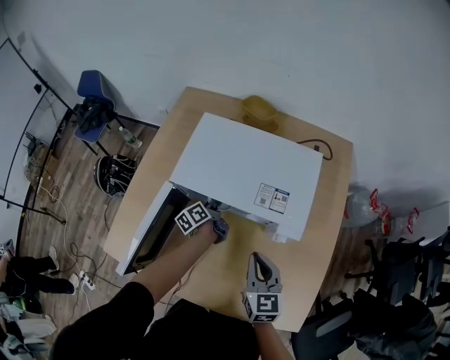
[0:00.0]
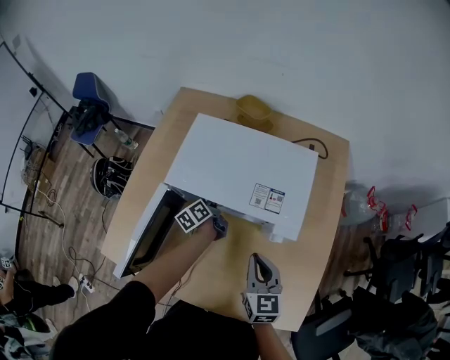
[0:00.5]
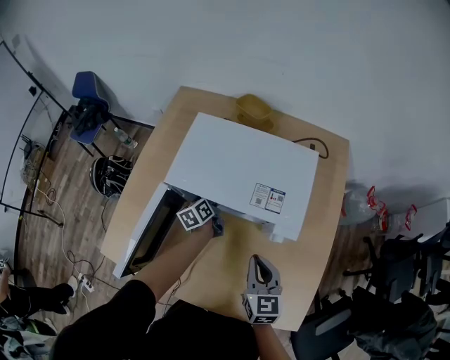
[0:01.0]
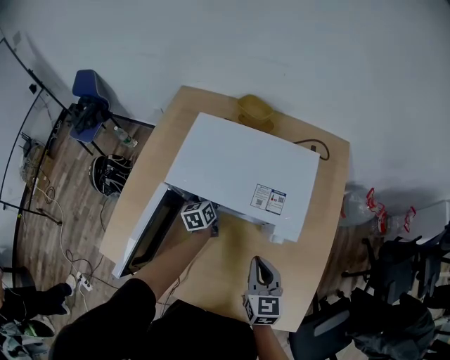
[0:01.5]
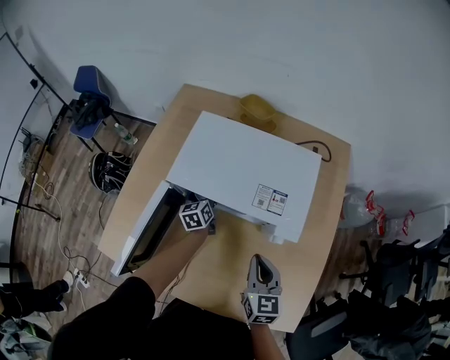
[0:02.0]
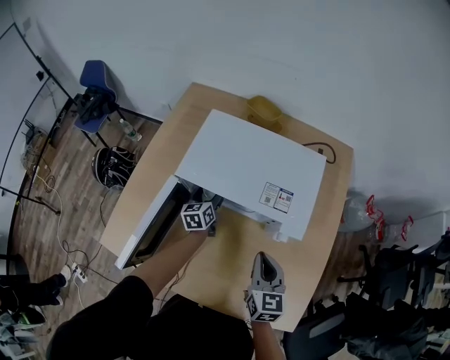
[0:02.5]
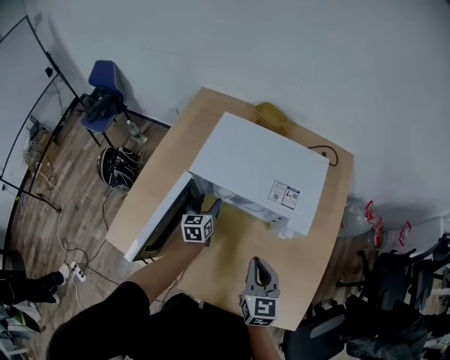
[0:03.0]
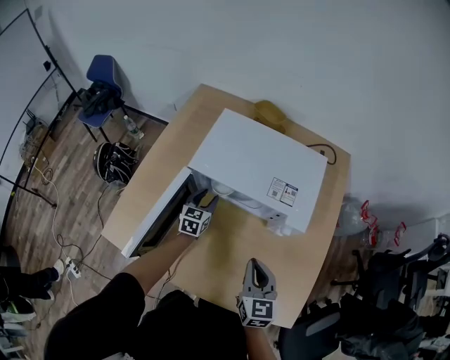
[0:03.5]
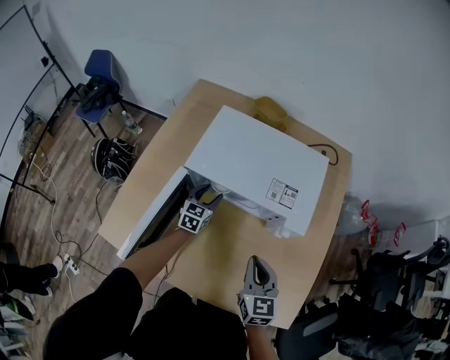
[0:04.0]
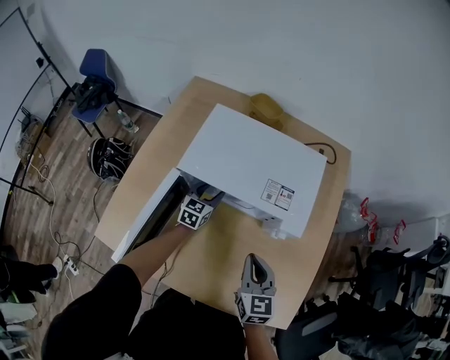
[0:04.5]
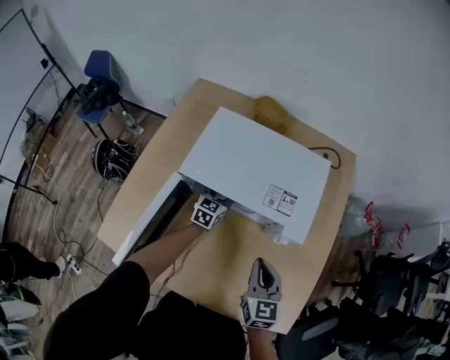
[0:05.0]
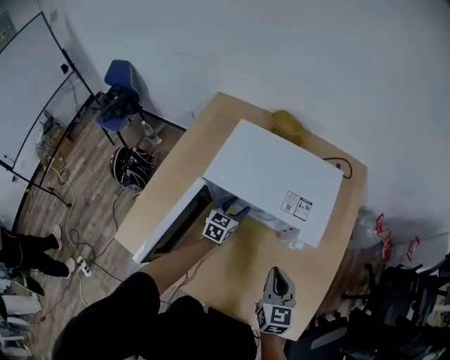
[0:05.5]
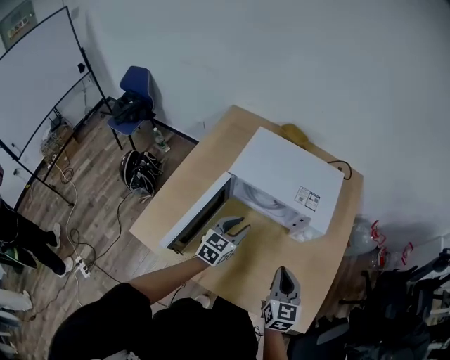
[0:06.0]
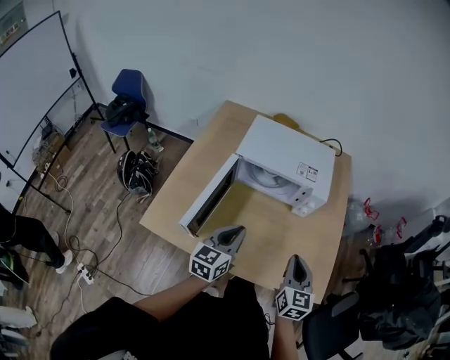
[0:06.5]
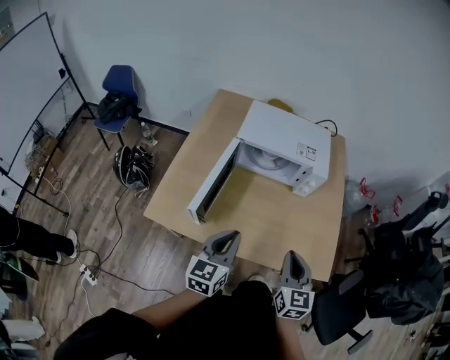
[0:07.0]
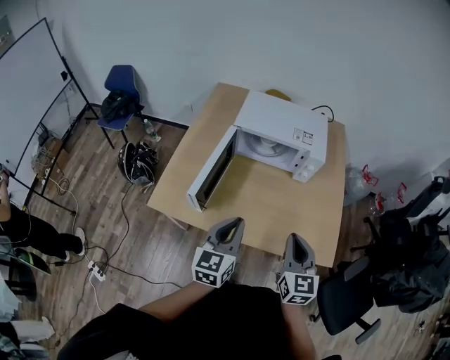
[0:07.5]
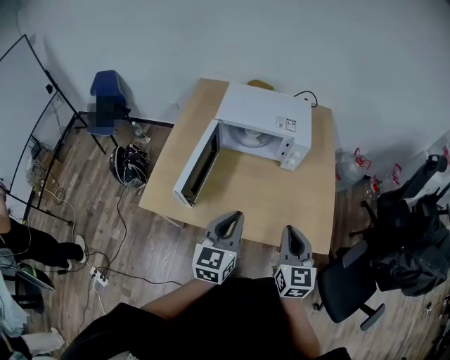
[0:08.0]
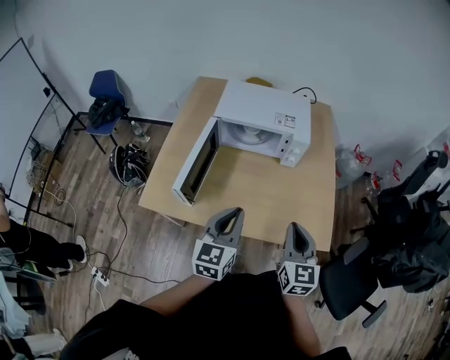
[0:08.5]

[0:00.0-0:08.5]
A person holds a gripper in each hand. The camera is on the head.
0.0 to 2.0 s: The left gripper swivels about 40 degrees.
2.0 to 4.0 s: The right gripper changes place by roughly 5 cm, while the left gripper shifts some 5 cm backward, swivels approximately 30 degrees, and closes.
4.0 to 6.5 s: The right gripper shifts approximately 15 cm backward and upward; the left gripper shifts roughly 35 cm backward and upward, and closes its fingers.
6.5 to 8.5 s: The left gripper heads backward and upward, covering roughly 10 cm, while the right gripper is displaced backward by roughly 10 cm.

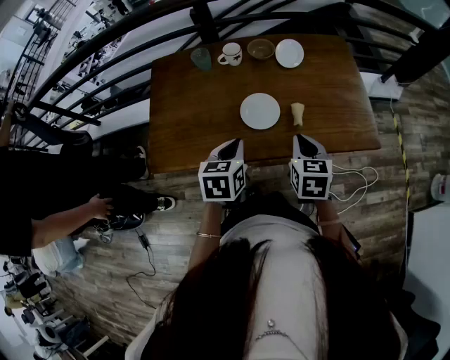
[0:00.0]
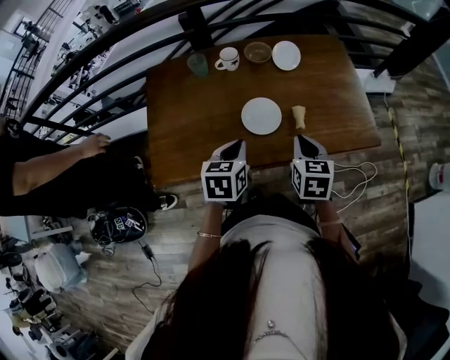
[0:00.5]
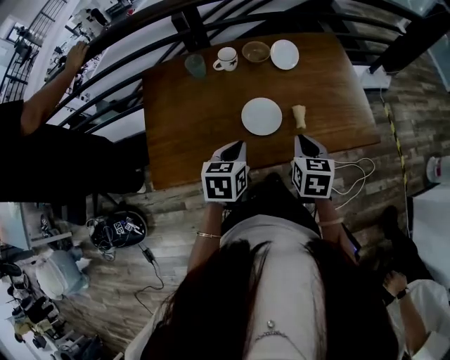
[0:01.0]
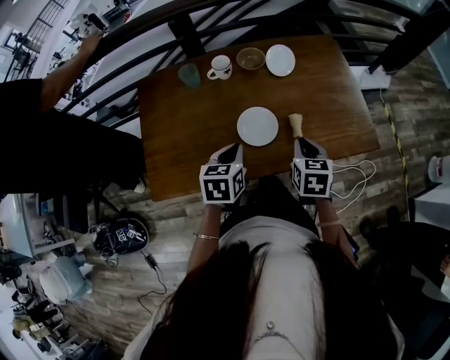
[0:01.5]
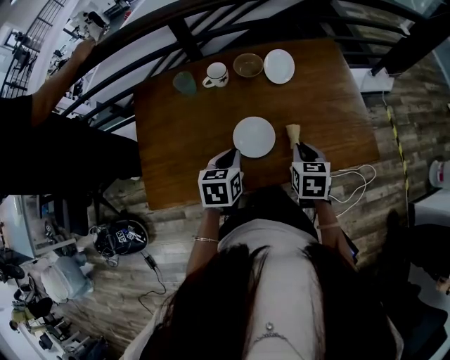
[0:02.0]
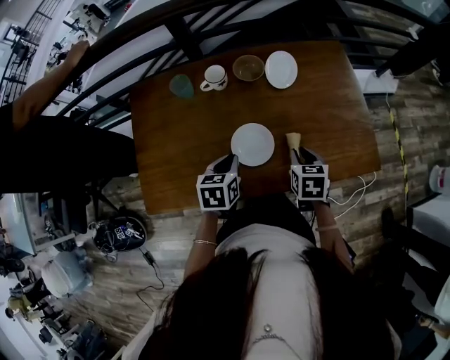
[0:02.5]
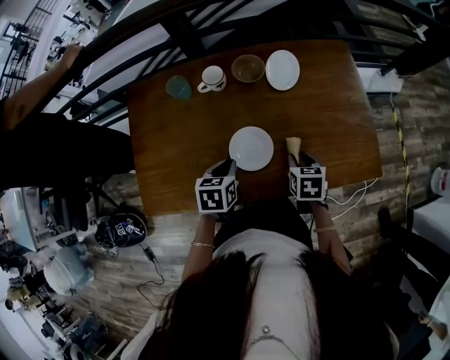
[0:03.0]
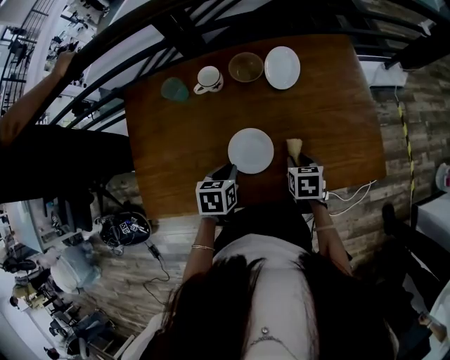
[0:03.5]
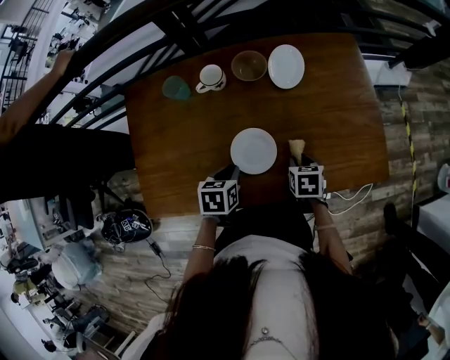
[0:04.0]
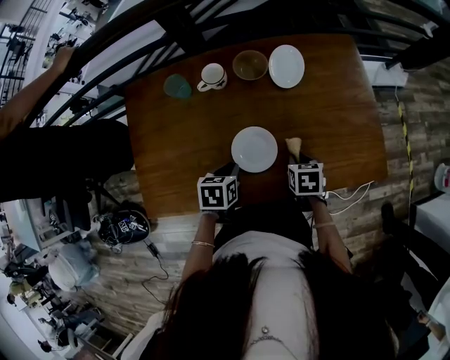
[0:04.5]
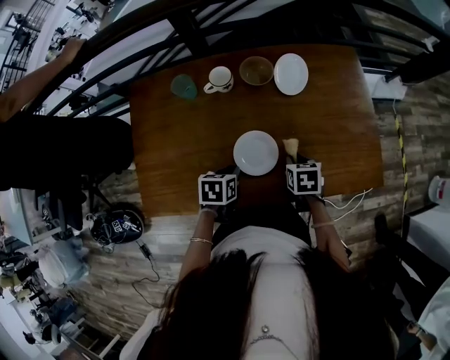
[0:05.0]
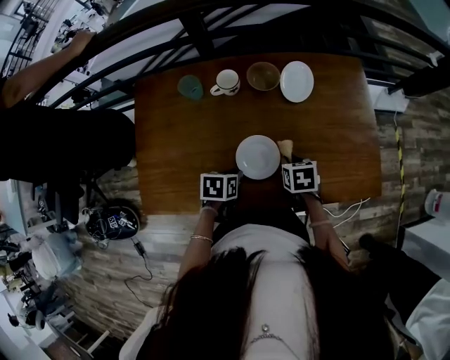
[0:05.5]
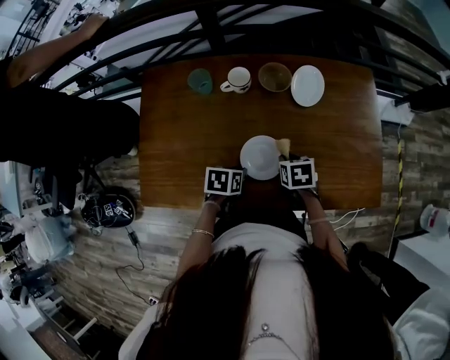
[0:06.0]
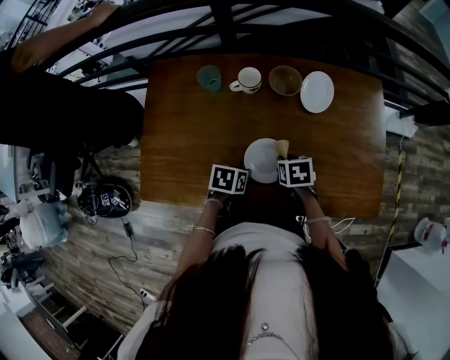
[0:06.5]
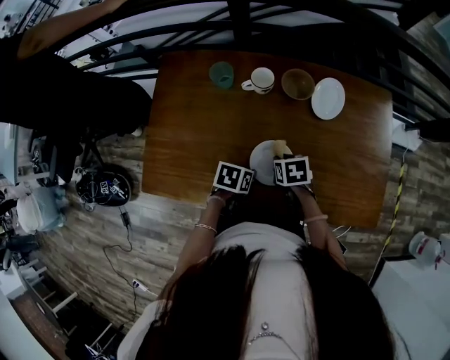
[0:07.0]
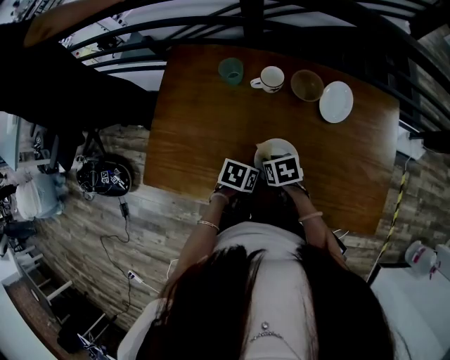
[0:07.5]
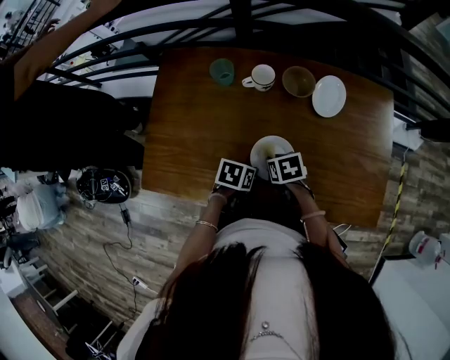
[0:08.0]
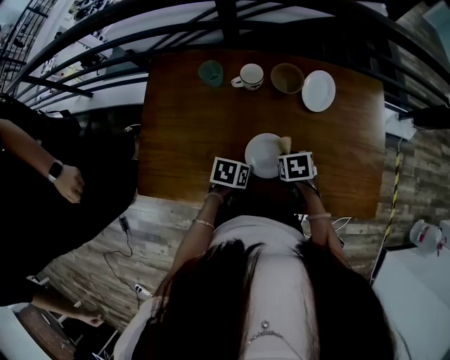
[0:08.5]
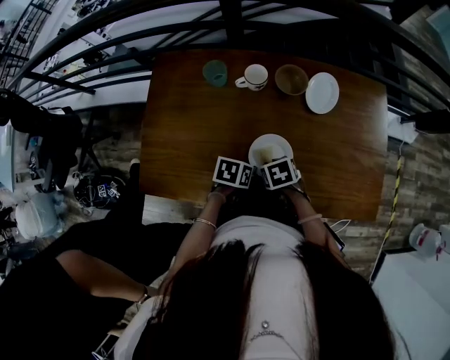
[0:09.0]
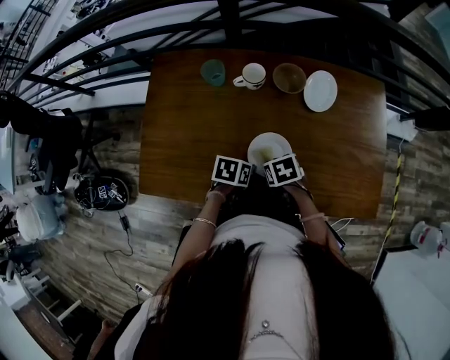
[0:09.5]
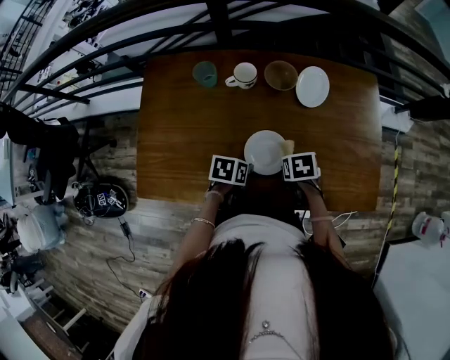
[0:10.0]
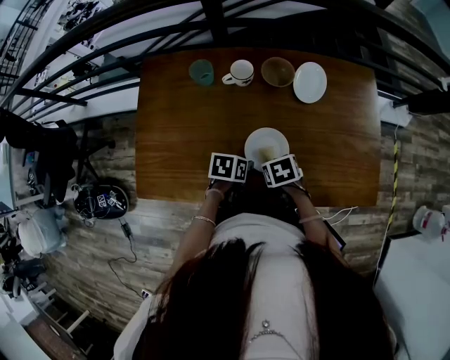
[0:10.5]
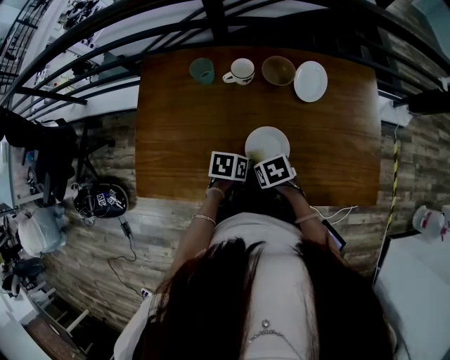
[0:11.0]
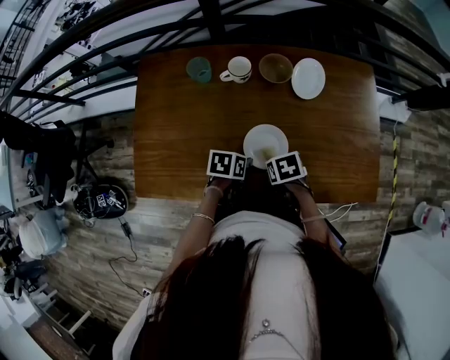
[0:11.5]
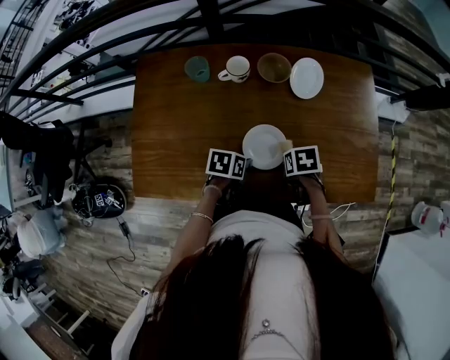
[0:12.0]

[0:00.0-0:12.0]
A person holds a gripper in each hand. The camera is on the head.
0.0 to 2.0 s: The two grippers go about 10 cm forward.
2.0 to 4.0 s: The right gripper is displaced downward and forward by approximately 15 cm, and opens its fingers; the left gripper is displaced downward by some 10 cm.
4.0 to 6.0 s: The right gripper travels to the left by roughly 10 cm.
6.0 to 8.0 s: The right gripper moves roughly 10 cm.
8.0 to 10.0 s: The right gripper changes place by about 10 cm.

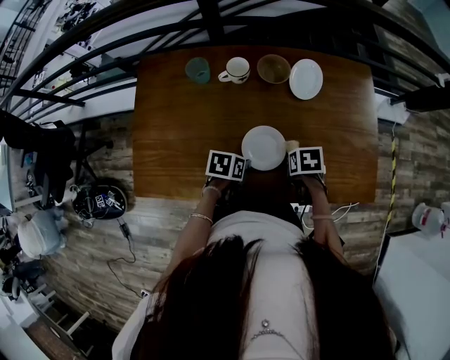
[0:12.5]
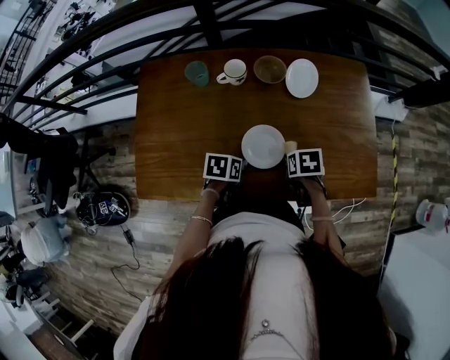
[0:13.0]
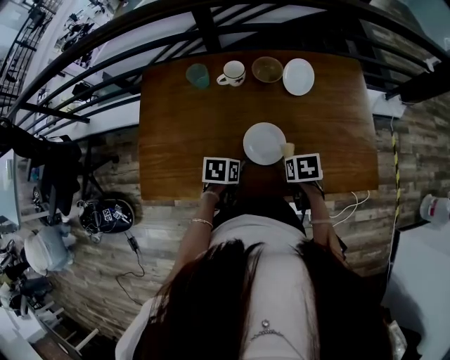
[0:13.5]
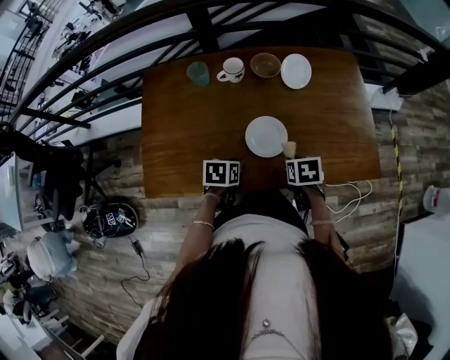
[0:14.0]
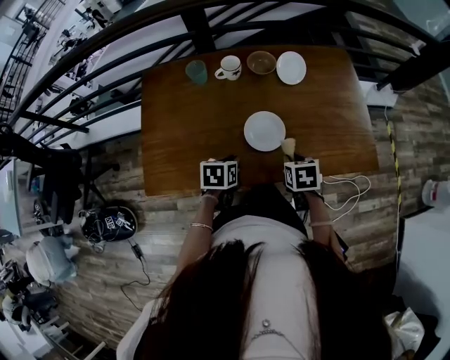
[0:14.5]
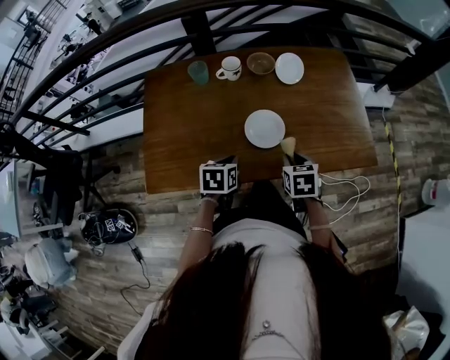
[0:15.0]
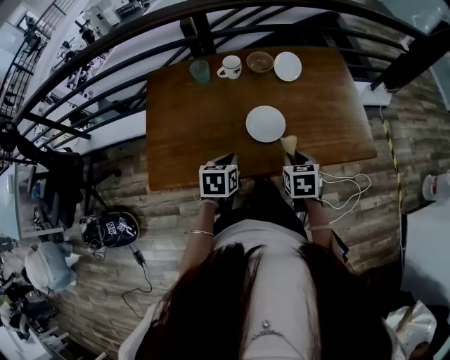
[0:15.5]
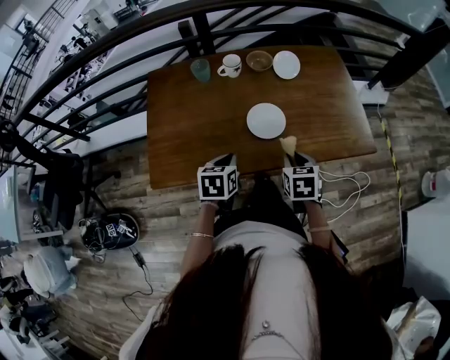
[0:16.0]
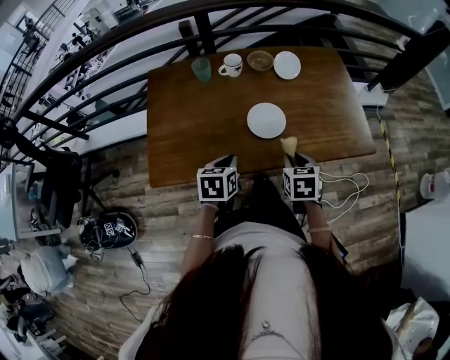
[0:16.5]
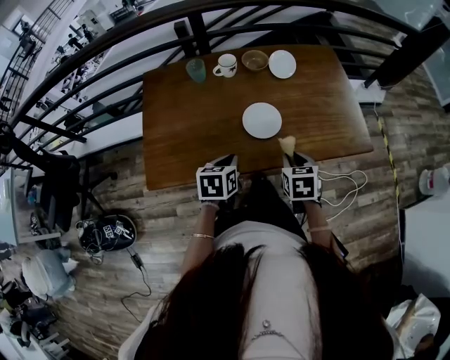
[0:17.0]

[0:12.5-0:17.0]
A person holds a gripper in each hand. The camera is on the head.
12.5 to 14.5 s: The right gripper ends up about 10 cm from where it was, and turns by roughly 20 degrees. Meanwhile the left gripper shifts by roughly 10 cm.
14.5 to 17.0 s: The right gripper travels backward by roughly 5 cm. The left gripper is displaced backward and upward by some 10 cm.

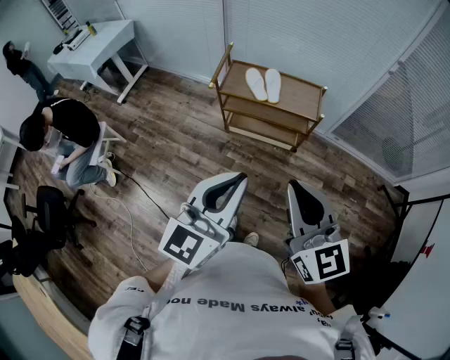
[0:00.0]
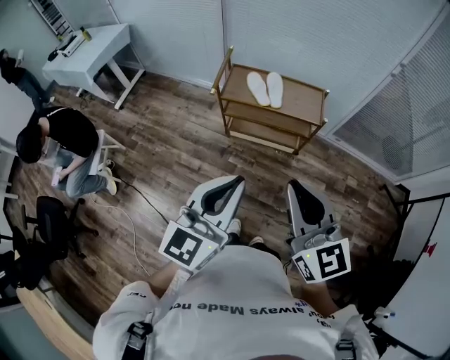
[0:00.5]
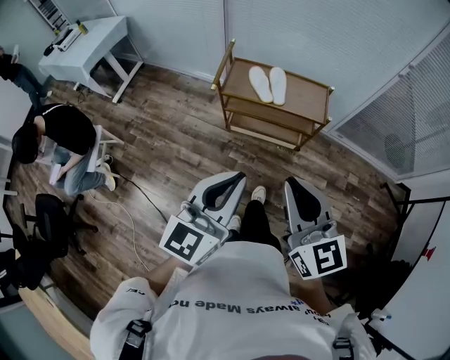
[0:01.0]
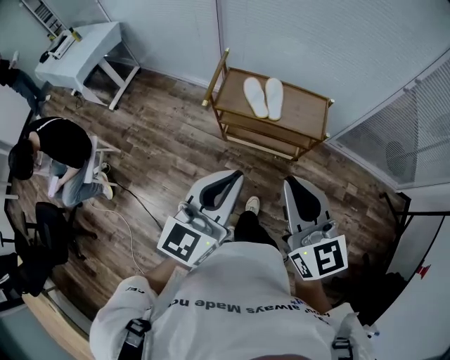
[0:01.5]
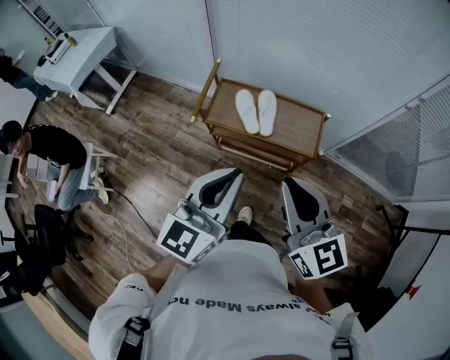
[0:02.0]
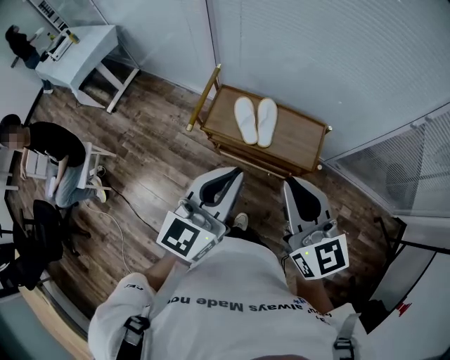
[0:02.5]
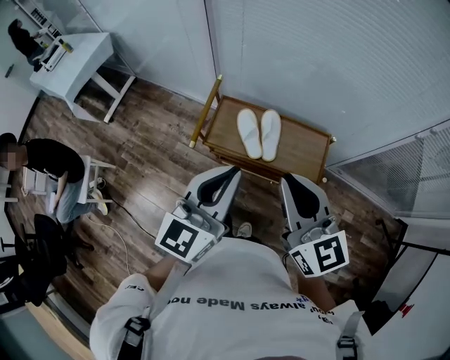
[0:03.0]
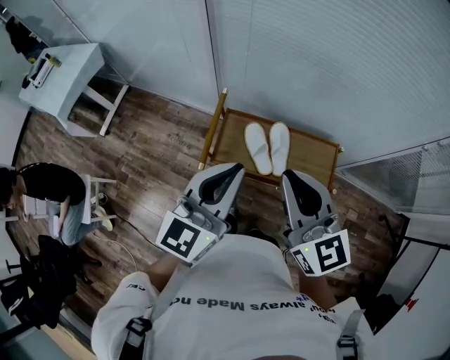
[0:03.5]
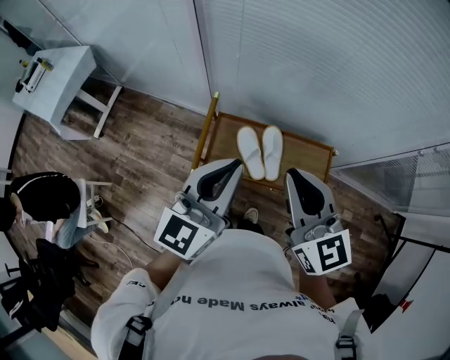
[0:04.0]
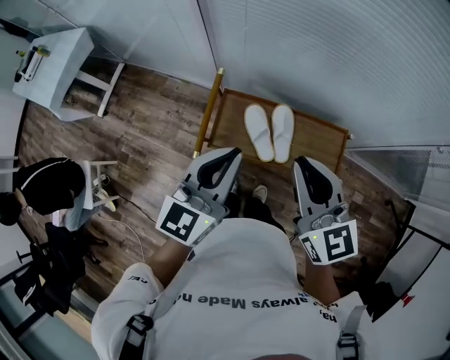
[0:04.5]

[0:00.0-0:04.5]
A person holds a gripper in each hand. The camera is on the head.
0.0 to 2.0 s: Both grippers travel together forward, about 30 cm.
2.0 to 4.5 s: The grippers both shift forward by about 30 cm.
